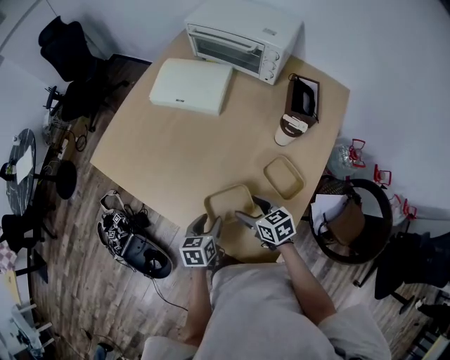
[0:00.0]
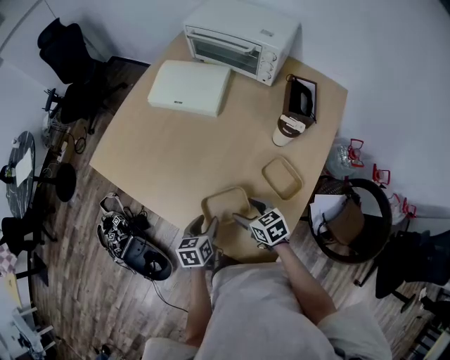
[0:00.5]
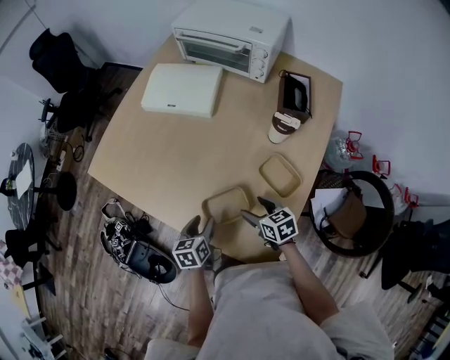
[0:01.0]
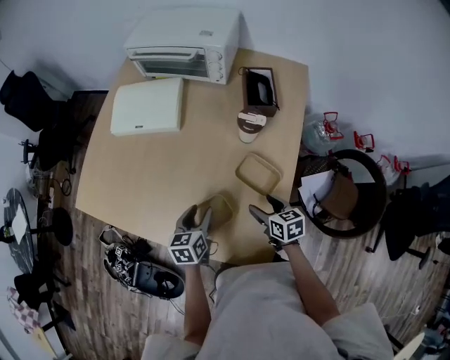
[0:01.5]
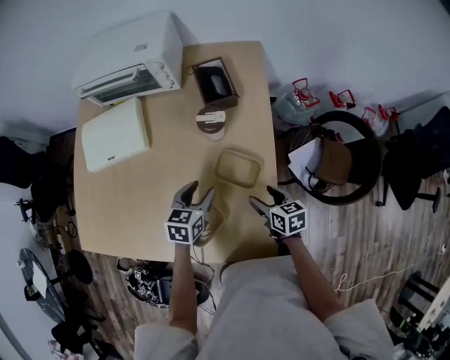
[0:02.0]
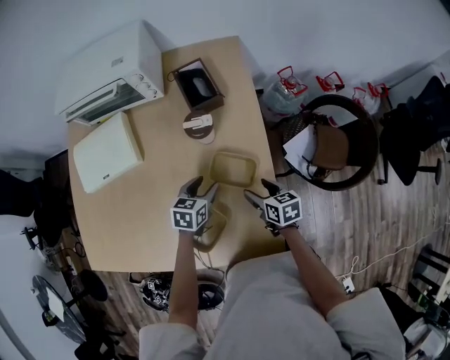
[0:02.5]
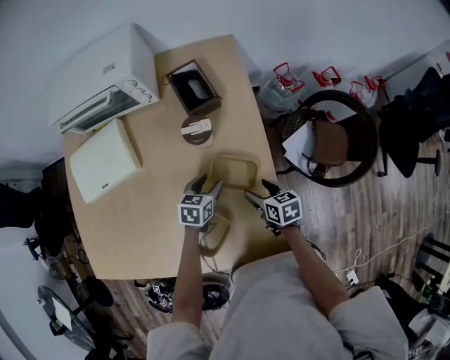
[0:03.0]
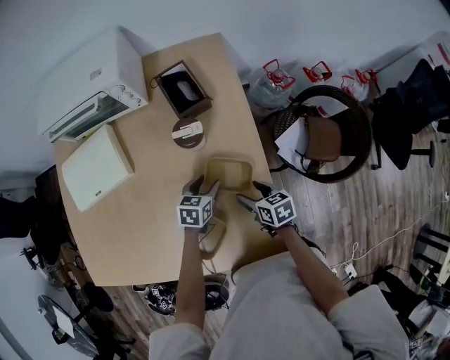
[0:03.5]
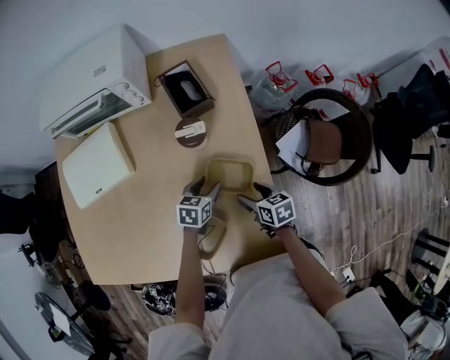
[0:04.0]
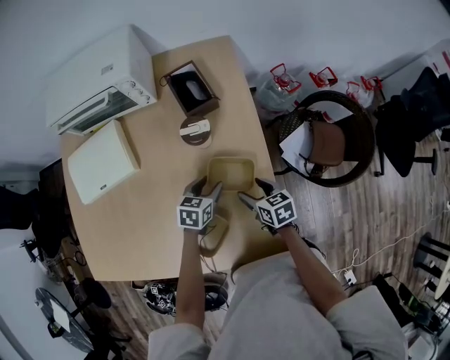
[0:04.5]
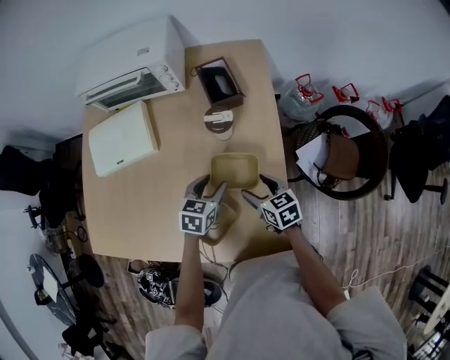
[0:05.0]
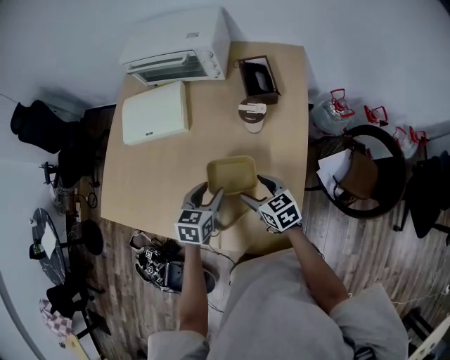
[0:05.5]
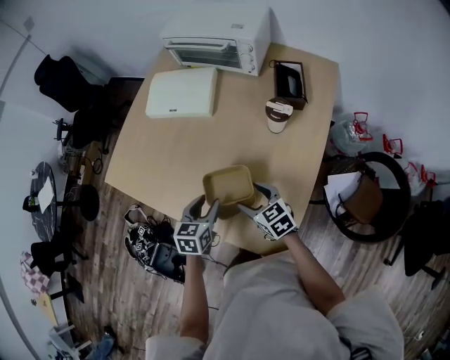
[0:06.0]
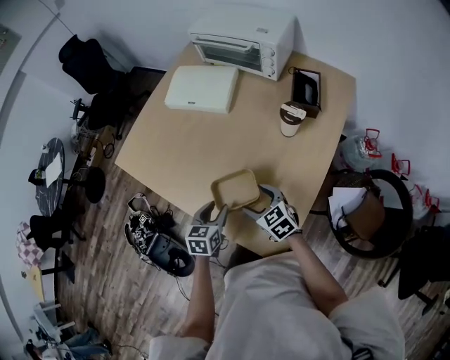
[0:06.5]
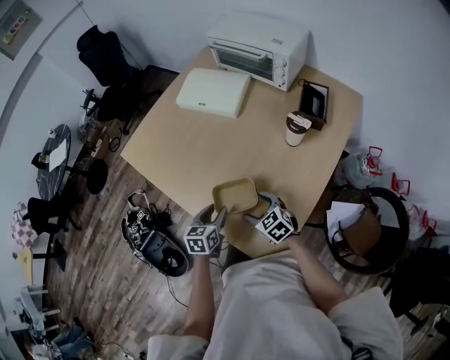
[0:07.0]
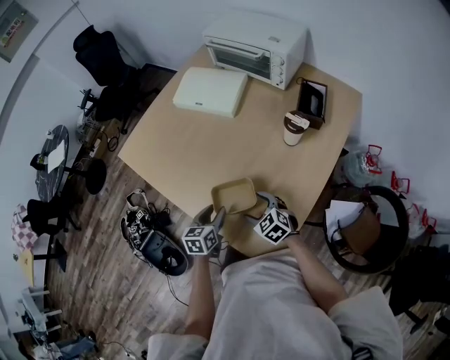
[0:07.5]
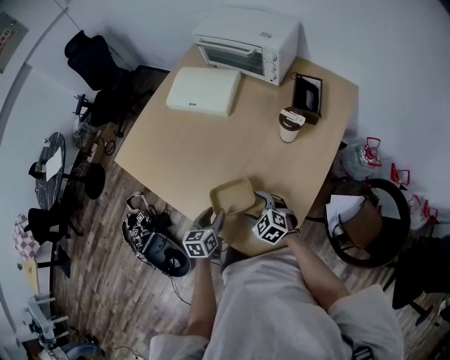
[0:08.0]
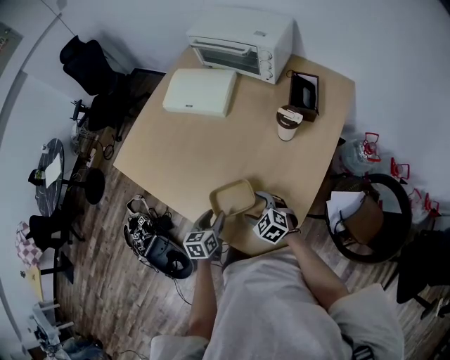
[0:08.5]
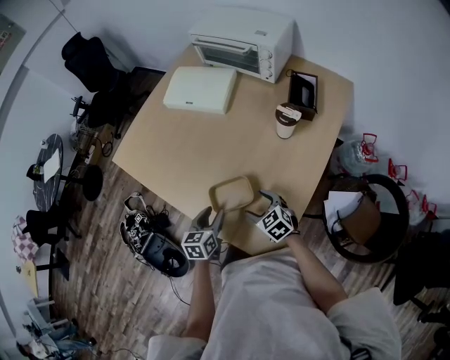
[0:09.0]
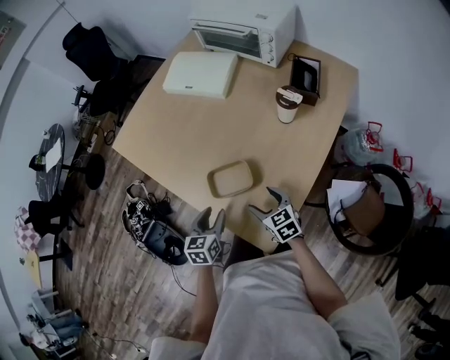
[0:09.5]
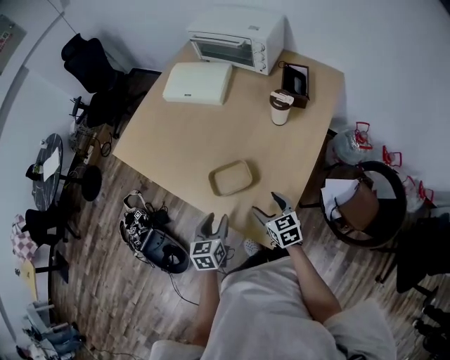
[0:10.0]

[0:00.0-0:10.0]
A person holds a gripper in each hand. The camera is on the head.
0:00.0 to 0:02.0: The right gripper shifts by about 20 cm, and changes its angle by roughly 40 degrees, while the left gripper shifts by roughly 20 cm, and swivels approximately 40 degrees.
0:02.0 to 0:04.0: The left gripper is displaced downward by some 10 cm.
0:04.0 to 0:06.0: The right gripper changes place by approximately 20 cm, and rotates around the line of its fingers by some 40 degrees, counterclockwise from behind. The left gripper changes place by about 25 cm, and changes its angle by approximately 40 degrees.
0:06.0 to 0:08.0: The right gripper is displaced downward by approximately 5 cm, and rotates some 30 degrees; the left gripper is displaced downward and backward by approximately 10 cm.
0:08.0 to 0:10.0: The grippers both shift backward by some 10 cm. The right gripper changes its angle by some 40 degrees.

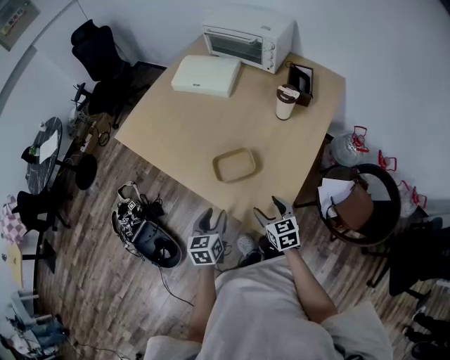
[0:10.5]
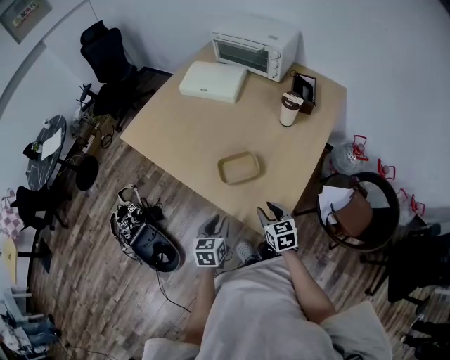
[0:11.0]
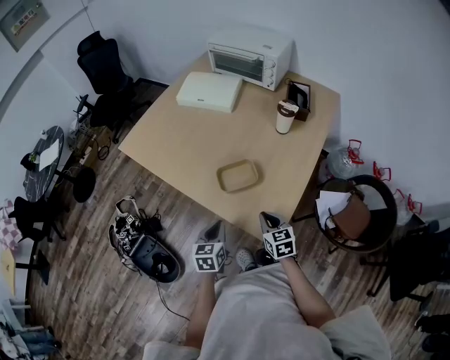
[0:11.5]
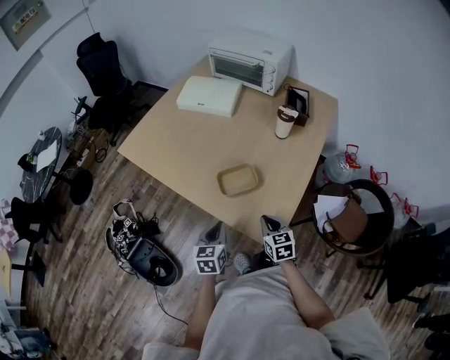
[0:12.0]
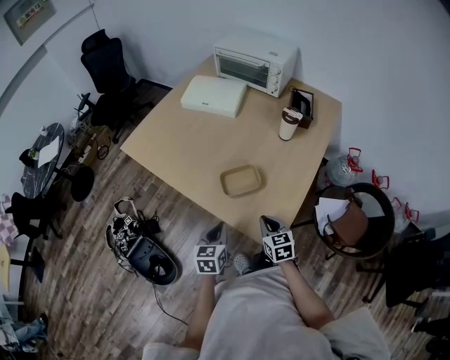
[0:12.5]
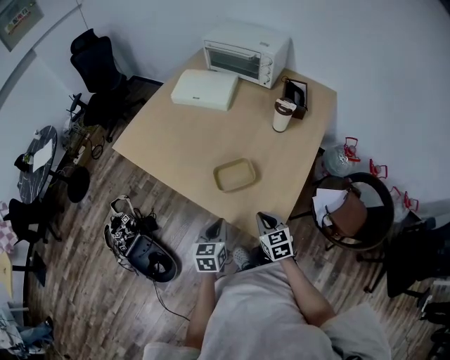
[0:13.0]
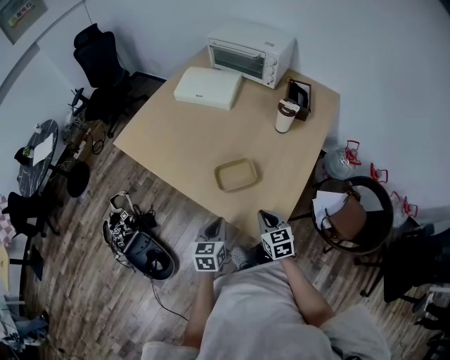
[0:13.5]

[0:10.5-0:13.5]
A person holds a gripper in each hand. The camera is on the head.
0:10.5 to 0:12.0: The left gripper closes up, while the right gripper closes up.
0:12.0 to 0:13.5: There are only small adjustments of the grippers.

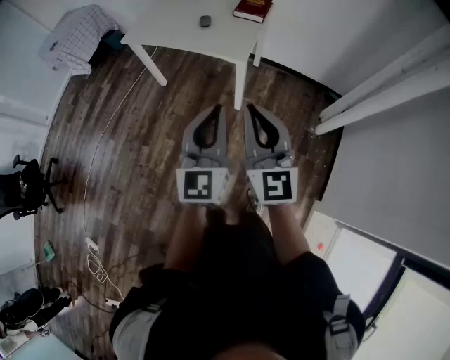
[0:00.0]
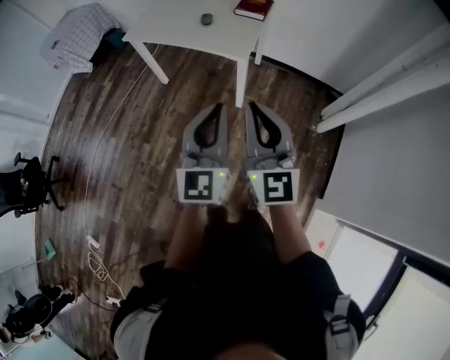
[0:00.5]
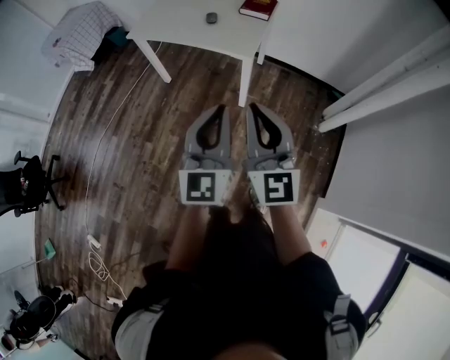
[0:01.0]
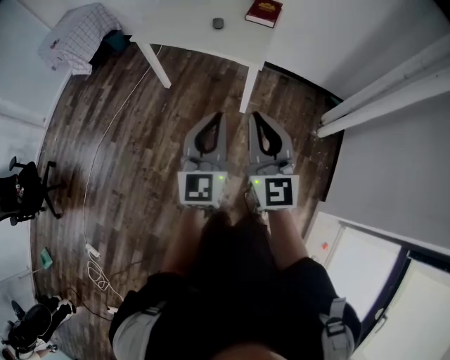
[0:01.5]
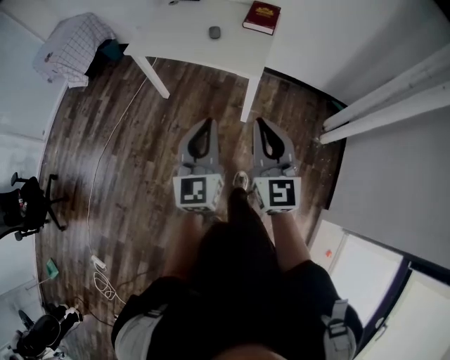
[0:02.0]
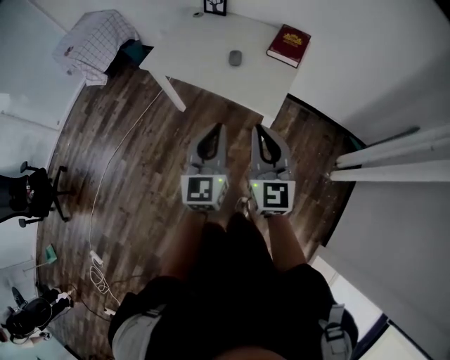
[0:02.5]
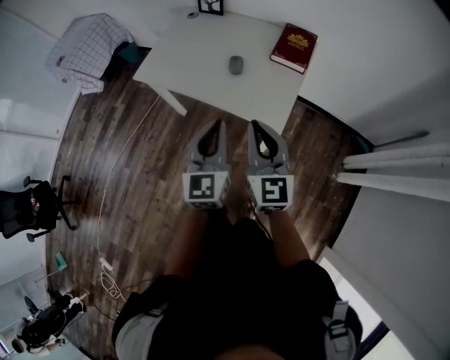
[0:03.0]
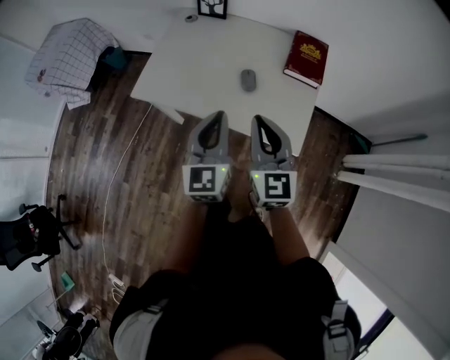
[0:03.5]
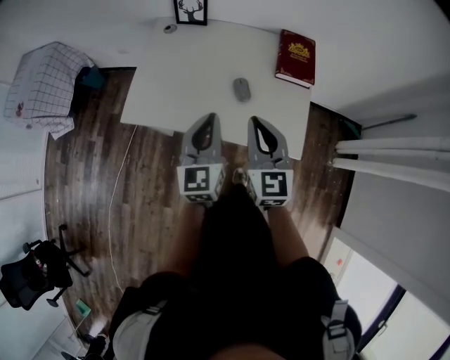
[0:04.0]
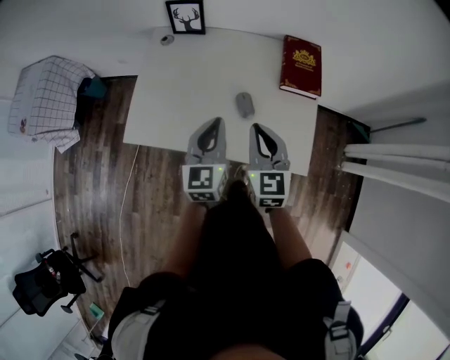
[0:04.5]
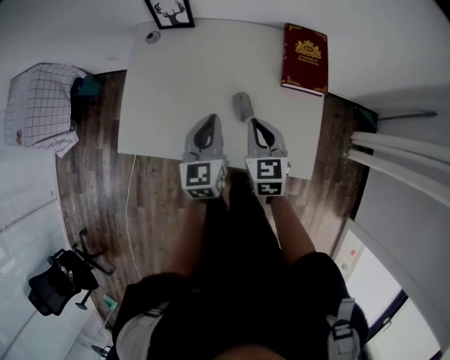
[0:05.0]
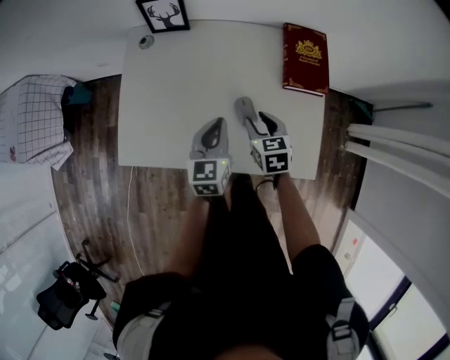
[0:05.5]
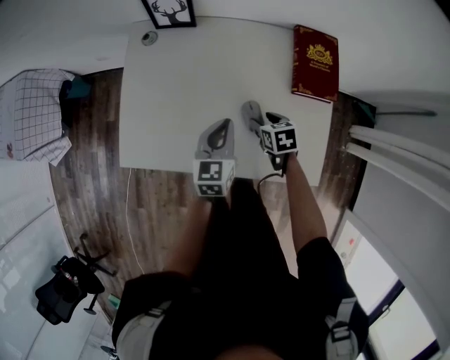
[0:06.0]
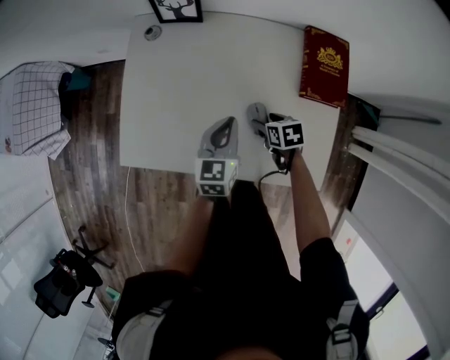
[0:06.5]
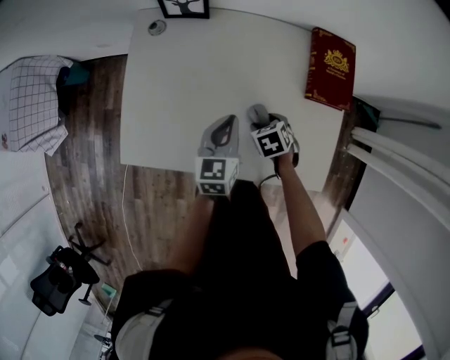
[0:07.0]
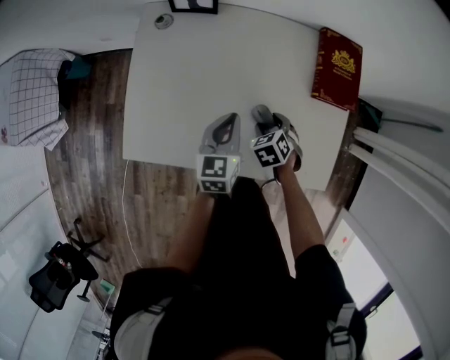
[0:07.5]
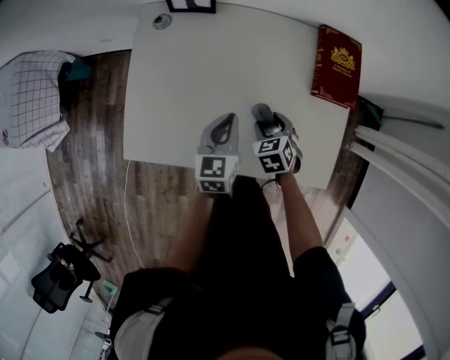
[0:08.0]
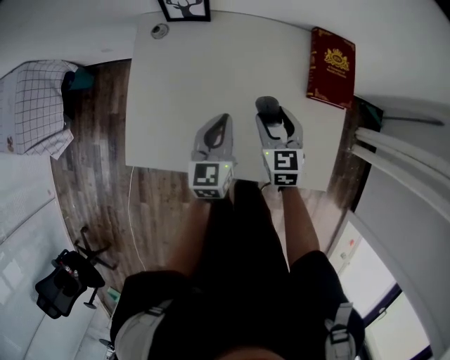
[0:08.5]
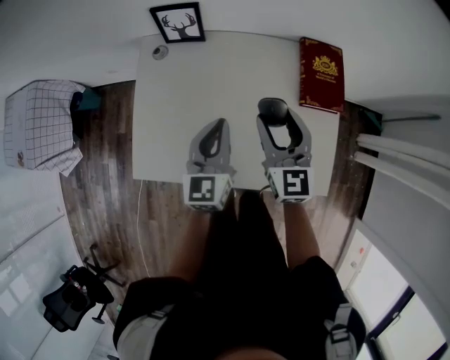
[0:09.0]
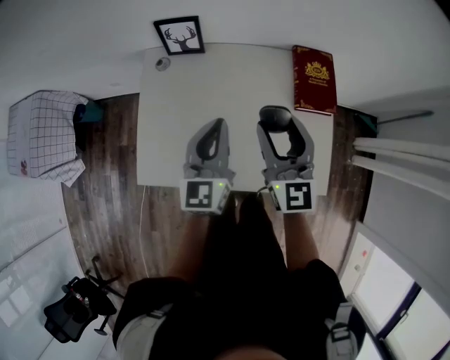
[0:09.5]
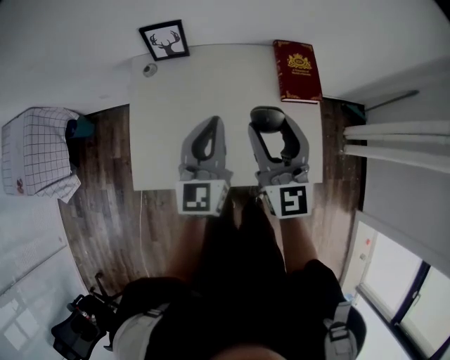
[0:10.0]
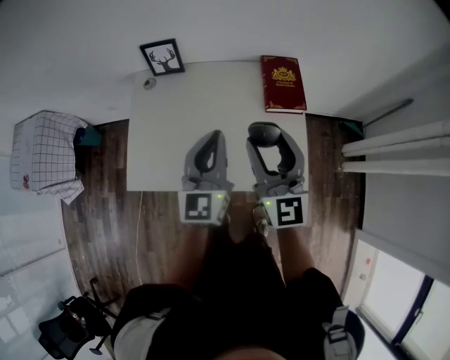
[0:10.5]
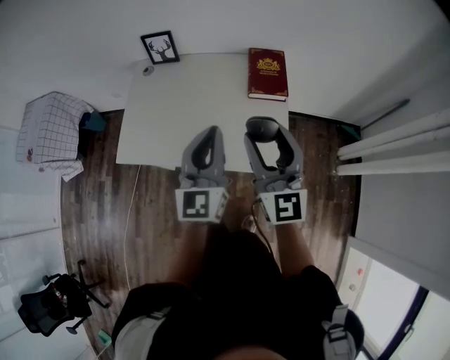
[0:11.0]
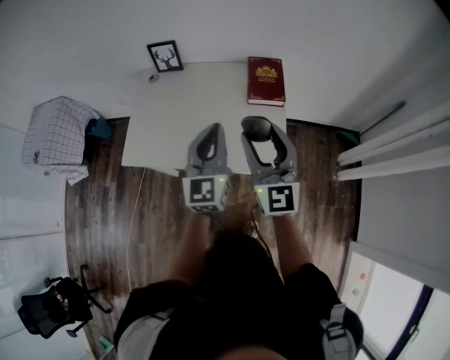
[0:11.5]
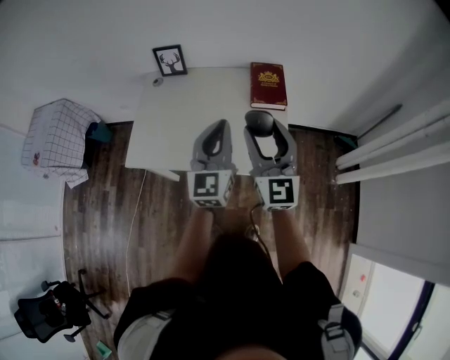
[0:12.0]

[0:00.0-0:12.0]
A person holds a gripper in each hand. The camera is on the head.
0:00.0 to 0:02.0: The right gripper heads forward and to the left, covering some 10 cm. Meanwhile the left gripper travels to the left and forward by roughly 15 cm.
0:02.0 to 0:04.0: The pair of grippers is taken forward, roughly 50 cm.
0:04.0 to 0:06.0: The right gripper heads downward and forward, covering some 35 cm, tilts its fingers about 50 degrees downward, and opens, while the left gripper shifts about 25 cm forward and downward, and swivels some 20 degrees.
0:06.0 to 0:08.0: The right gripper rotates about 30 degrees. Meanwhile the left gripper changes place by roughly 5 cm.
0:08.0 to 0:10.0: The right gripper travels upward by some 35 cm, and tilts its fingers some 60 degrees upward. Meanwhile the left gripper travels upward by roughly 25 cm, and rotates approximately 30 degrees.
0:10.0 to 0:12.0: The right gripper is displaced backward and to the right by some 25 cm; the left gripper travels backward, to the right and upward by some 25 cm.

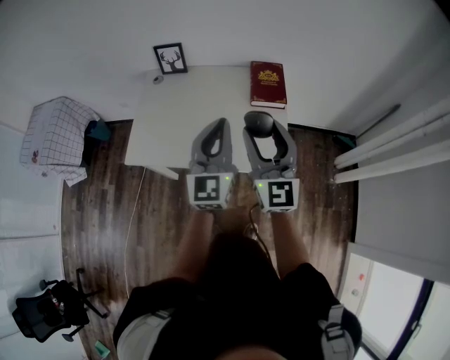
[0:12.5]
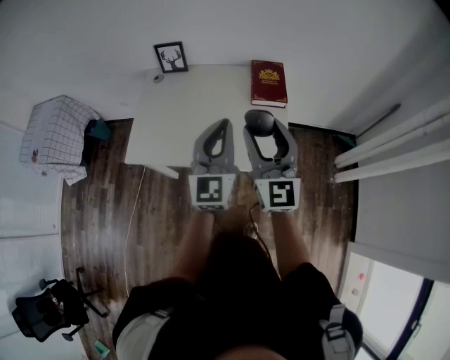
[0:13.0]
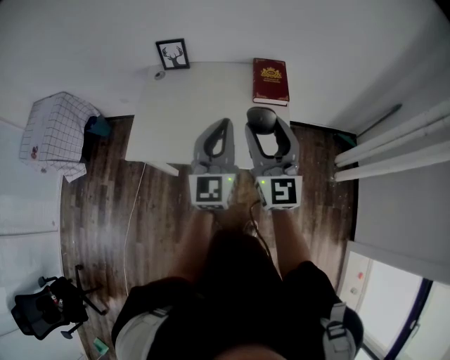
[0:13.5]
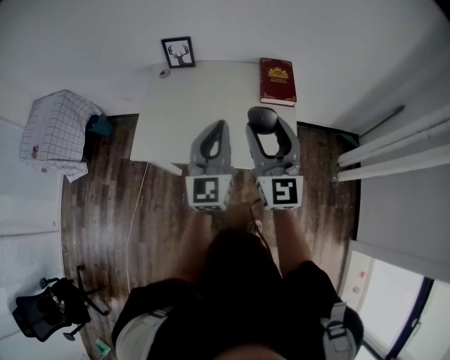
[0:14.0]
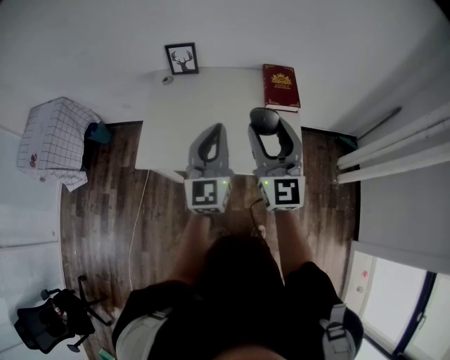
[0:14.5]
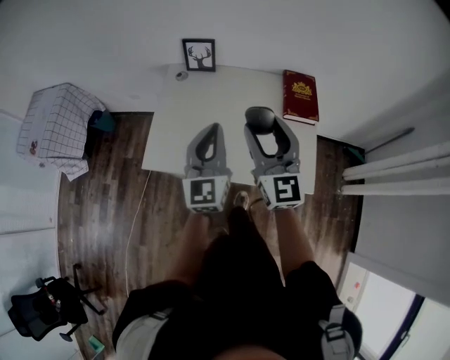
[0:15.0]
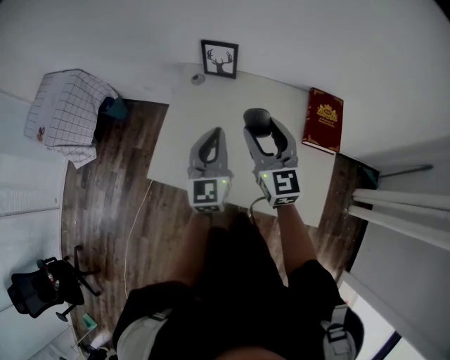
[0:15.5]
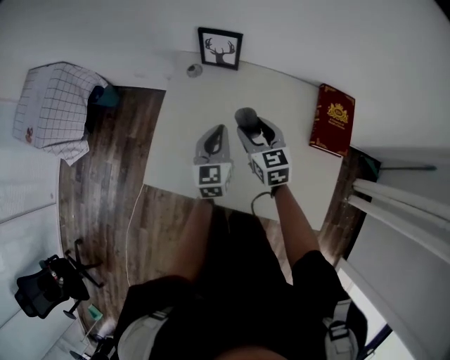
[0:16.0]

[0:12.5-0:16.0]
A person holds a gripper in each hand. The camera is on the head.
0:12.5 to 0:14.5: The two grippers go about 10 cm to the left.
0:14.5 to 0:16.0: Both grippers travel together forward and downward, about 40 cm. The left gripper changes its angle by roughly 30 degrees. The right gripper points its fingers roughly 40 degrees further downward.
